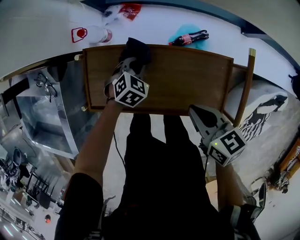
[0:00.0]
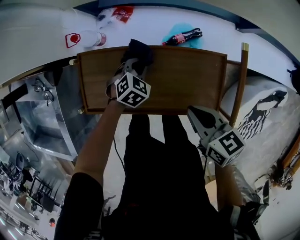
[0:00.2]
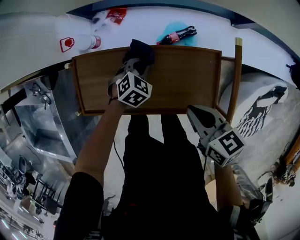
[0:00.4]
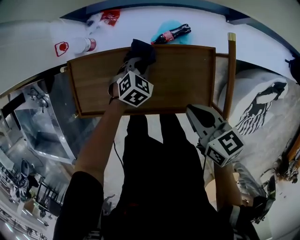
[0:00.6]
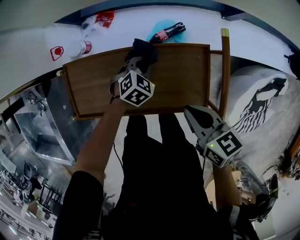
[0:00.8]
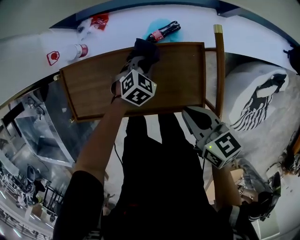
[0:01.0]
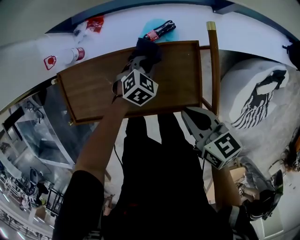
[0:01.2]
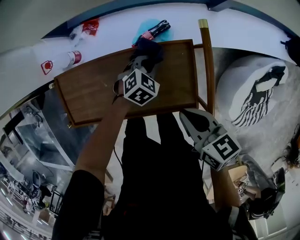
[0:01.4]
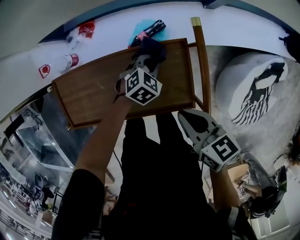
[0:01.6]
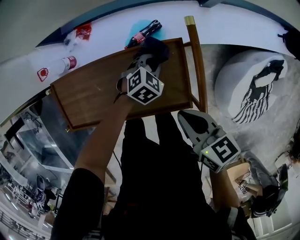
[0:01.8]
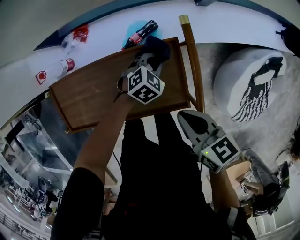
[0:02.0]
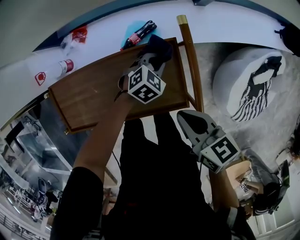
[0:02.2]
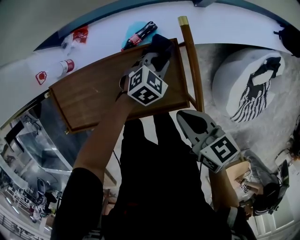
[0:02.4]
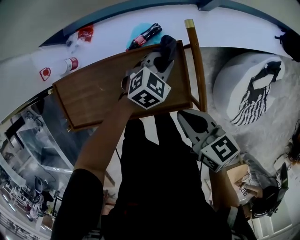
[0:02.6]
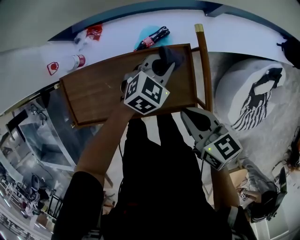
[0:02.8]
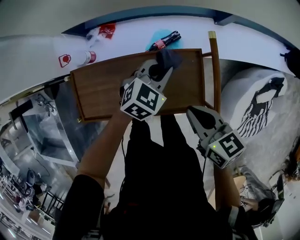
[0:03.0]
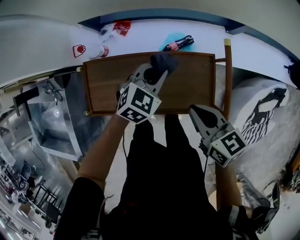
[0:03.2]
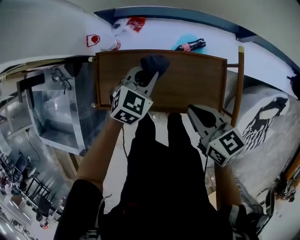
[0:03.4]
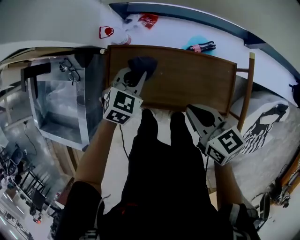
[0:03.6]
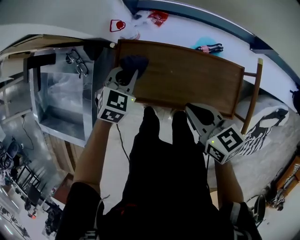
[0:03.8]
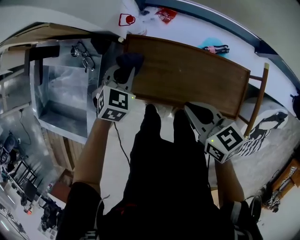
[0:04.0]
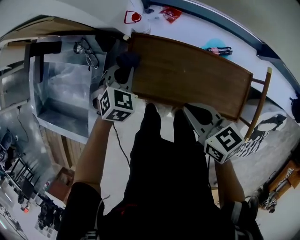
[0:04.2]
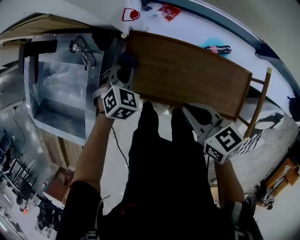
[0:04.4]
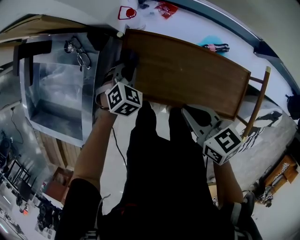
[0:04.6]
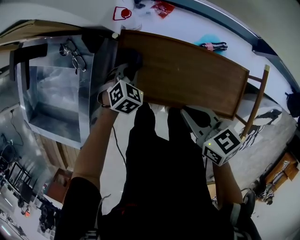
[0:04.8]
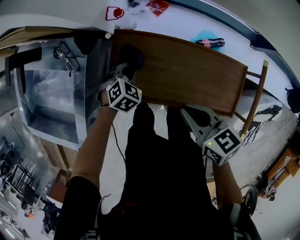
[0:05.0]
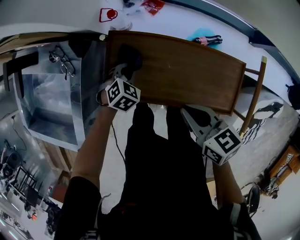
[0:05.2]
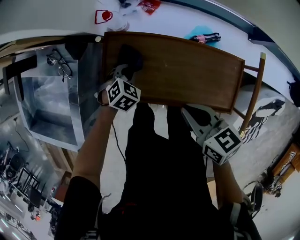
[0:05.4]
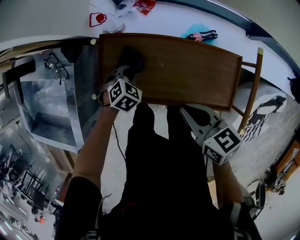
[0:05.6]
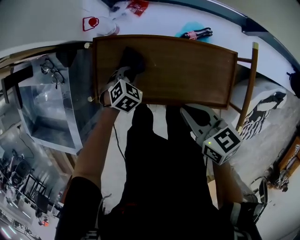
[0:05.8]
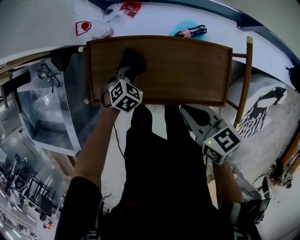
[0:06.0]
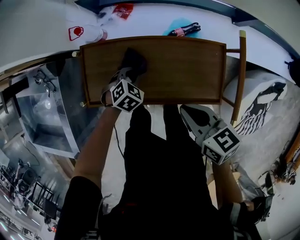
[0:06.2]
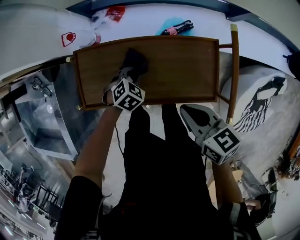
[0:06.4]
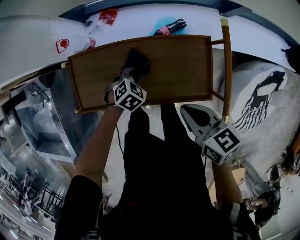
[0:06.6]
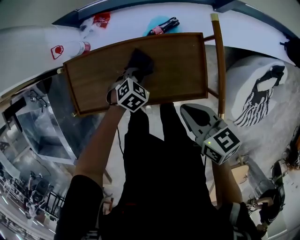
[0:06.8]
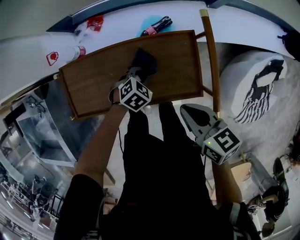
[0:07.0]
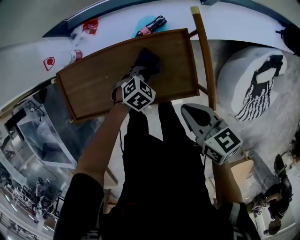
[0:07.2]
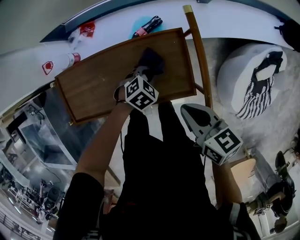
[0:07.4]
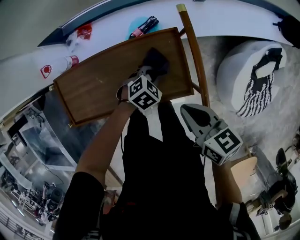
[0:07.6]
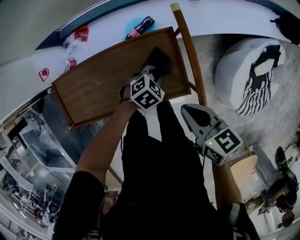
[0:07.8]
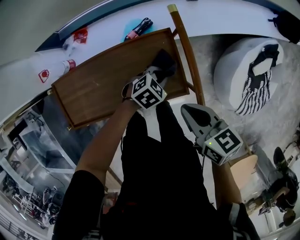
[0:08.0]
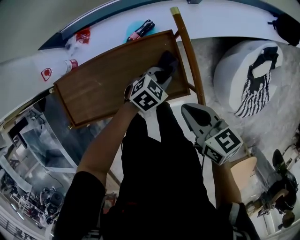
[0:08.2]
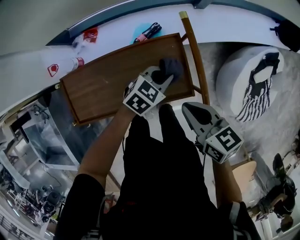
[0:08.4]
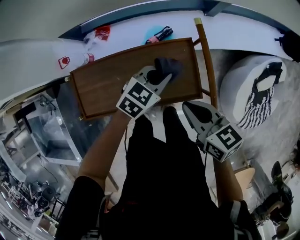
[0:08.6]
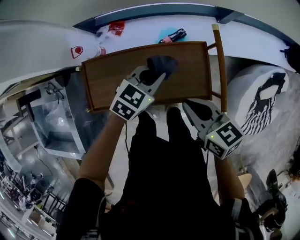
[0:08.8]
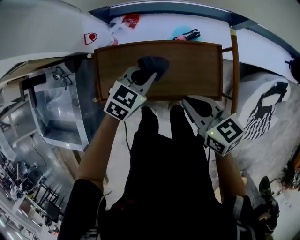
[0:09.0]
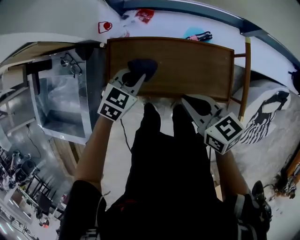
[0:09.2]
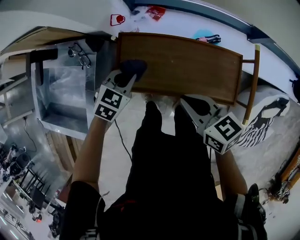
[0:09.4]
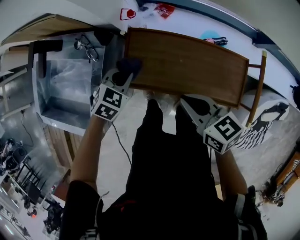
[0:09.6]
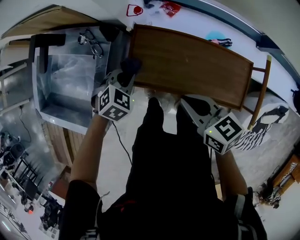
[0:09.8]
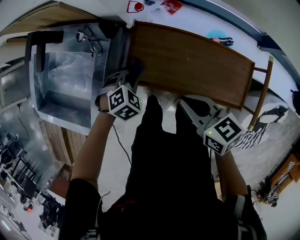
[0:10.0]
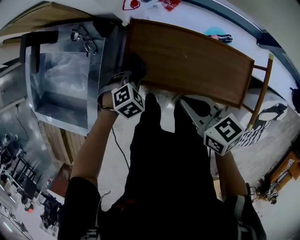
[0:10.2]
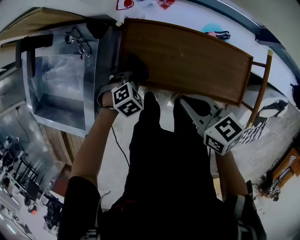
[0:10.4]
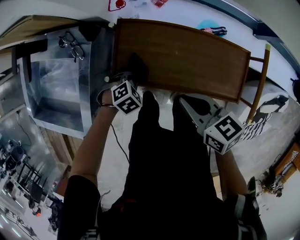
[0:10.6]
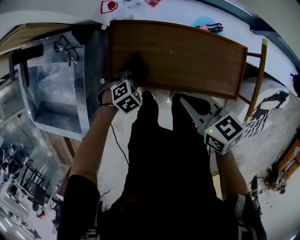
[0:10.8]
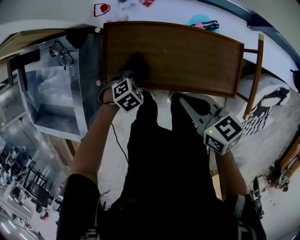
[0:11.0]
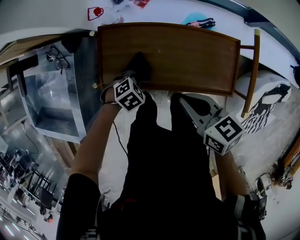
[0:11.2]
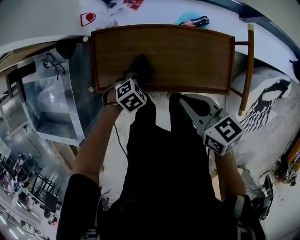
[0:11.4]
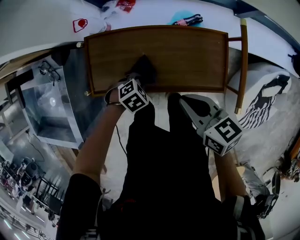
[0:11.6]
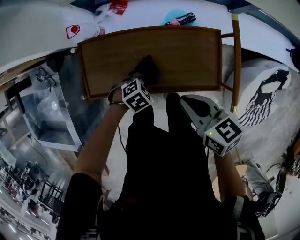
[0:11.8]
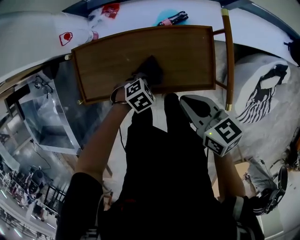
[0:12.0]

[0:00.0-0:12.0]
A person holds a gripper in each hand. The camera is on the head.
0:00.0 to 0:01.6: The right gripper travels to the right by roughly 15 cm, while the left gripper heads to the right, covering some 25 cm.
0:01.6 to 0:03.0: The left gripper goes approximately 15 cm upward, while the right gripper moves about 5 cm.
0:03.0 to 0:04.4: The right gripper ends up roughly 30 cm from where it was, and rotates about 20 degrees. The left gripper changes place by roughly 40 cm, and turns by some 40 degrees.
0:04.4 to 0:06.0: The right gripper is displaced to the right and backward by about 15 cm. Meanwhile the left gripper heads to the right, downward and backward, covering about 20 cm.
0:06.0 to 0:07.6: The left gripper shifts by approximately 30 cm, and changes its angle by some 20 degrees, while the right gripper moves some 20 cm.
0:07.6 to 0:09.0: The right gripper changes place by roughly 20 cm. The left gripper shifts by roughly 30 cm, and rotates some 30 degrees.
0:09.0 to 0:10.4: The right gripper travels to the left by roughly 15 cm. Meanwhile the left gripper travels to the left and downward by about 30 cm, and tilts its fingers approximately 30 degrees downward.
0:10.4 to 0:12.0: The right gripper moves roughly 20 cm, while the left gripper moves some 25 cm.

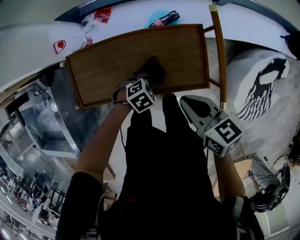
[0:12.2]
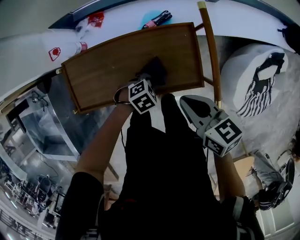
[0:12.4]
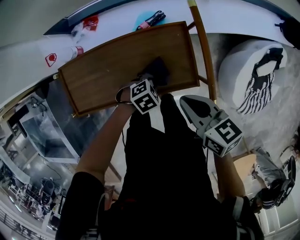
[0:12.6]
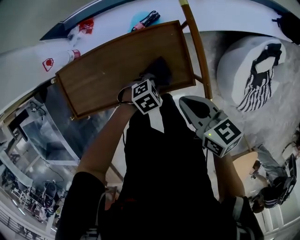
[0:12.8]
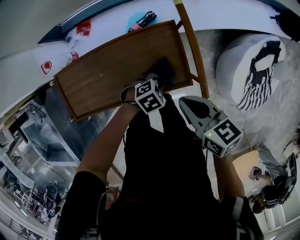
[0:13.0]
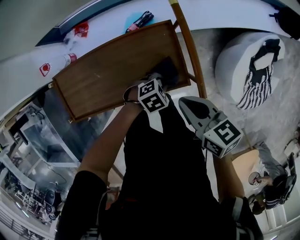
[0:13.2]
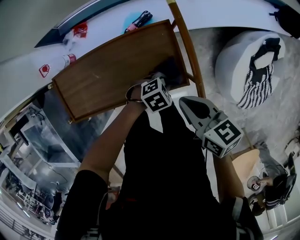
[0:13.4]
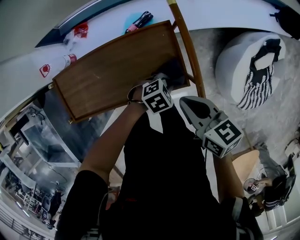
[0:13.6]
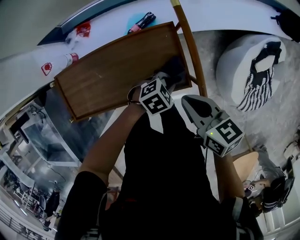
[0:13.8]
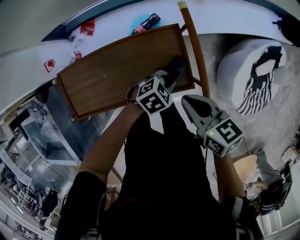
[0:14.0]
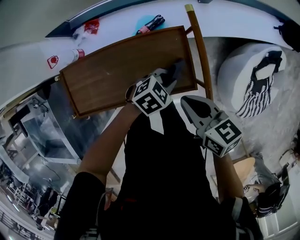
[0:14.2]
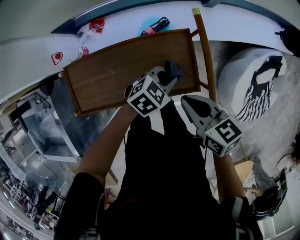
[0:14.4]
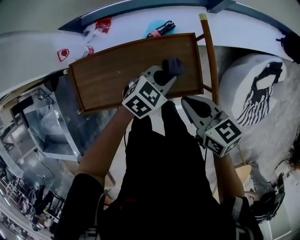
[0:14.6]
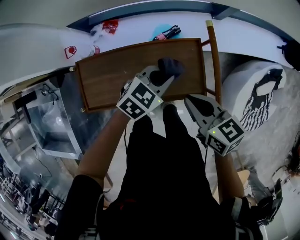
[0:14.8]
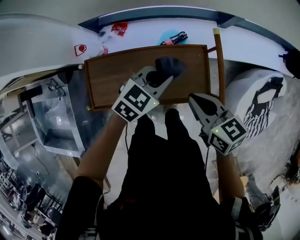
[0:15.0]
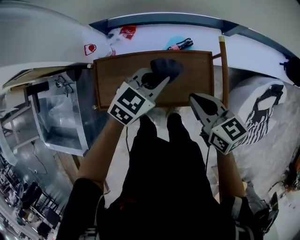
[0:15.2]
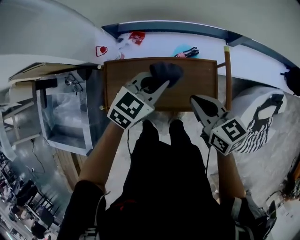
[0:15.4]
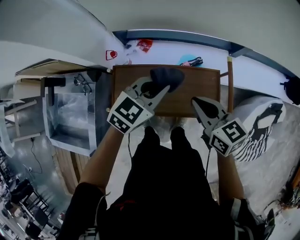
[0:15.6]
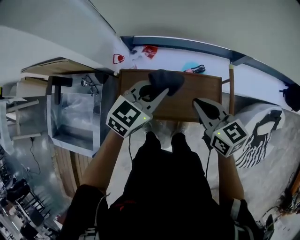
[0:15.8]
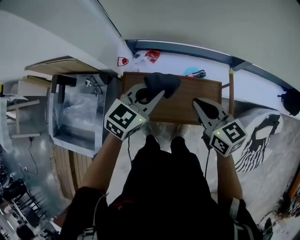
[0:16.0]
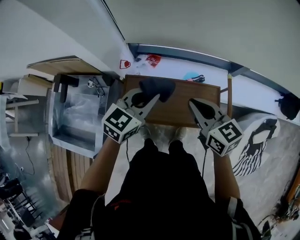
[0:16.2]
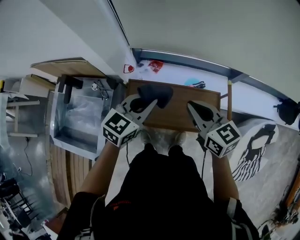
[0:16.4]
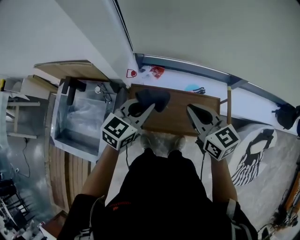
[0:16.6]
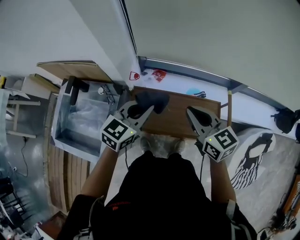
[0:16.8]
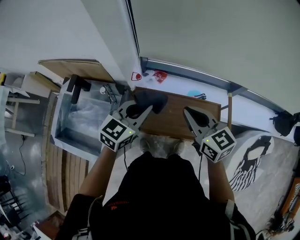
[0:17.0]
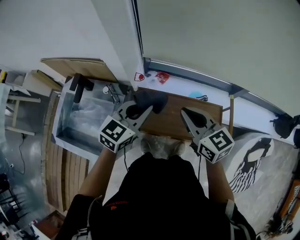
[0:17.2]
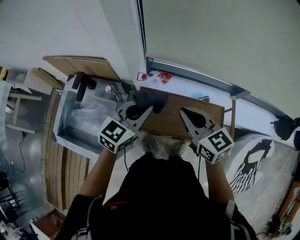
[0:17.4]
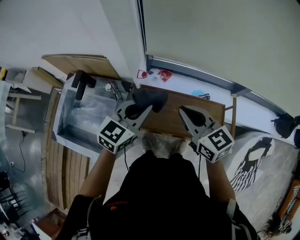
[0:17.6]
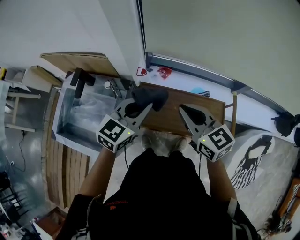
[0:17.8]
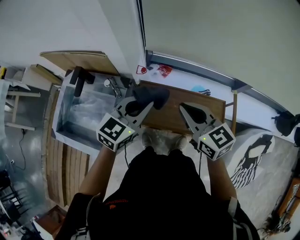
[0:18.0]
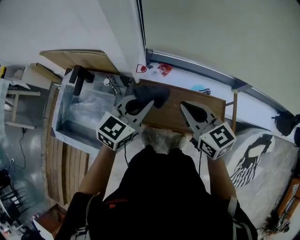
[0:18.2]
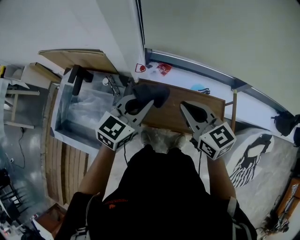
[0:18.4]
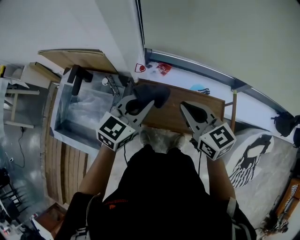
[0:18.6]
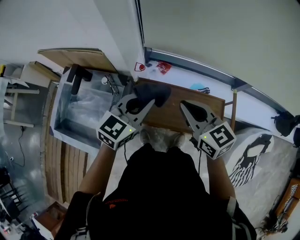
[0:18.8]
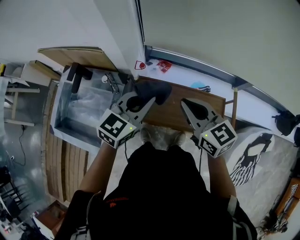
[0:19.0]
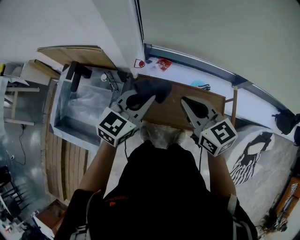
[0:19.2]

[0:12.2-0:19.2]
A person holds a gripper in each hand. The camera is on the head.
0:12.2 to 0:13.6: The left gripper ends up some 20 cm from where it was. Meanwhile the right gripper moves about 10 cm.
0:13.6 to 0:15.0: The left gripper heads upward, covering roughly 20 cm, and turns by roughly 40 degrees. The right gripper moves some 15 cm.
0:15.0 to 0:16.4: Both grippers move to the left and upward, about 25 cm. The left gripper changes its angle by some 30 degrees. The right gripper changes its angle by approximately 20 degrees.
0:16.4 to 0:17.8: The grippers both shift to the left by approximately 10 cm.
0:17.8 to 0:19.2: The grippers move only a little.

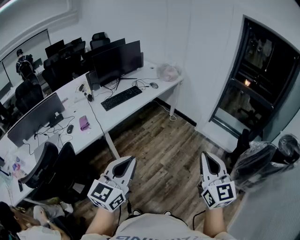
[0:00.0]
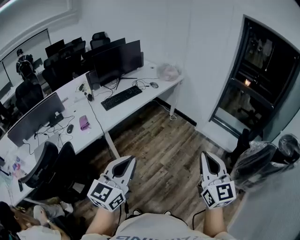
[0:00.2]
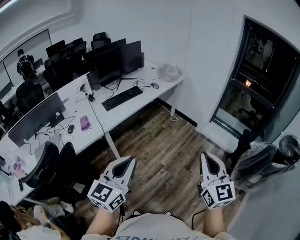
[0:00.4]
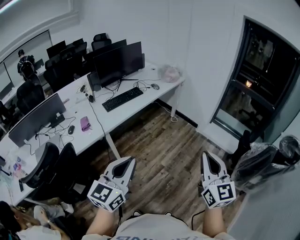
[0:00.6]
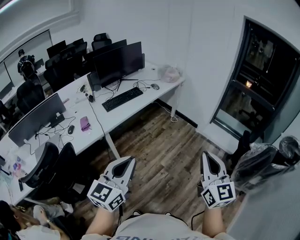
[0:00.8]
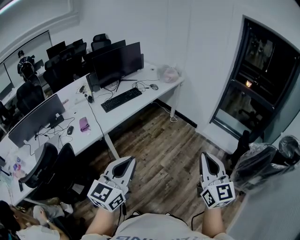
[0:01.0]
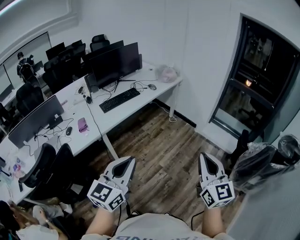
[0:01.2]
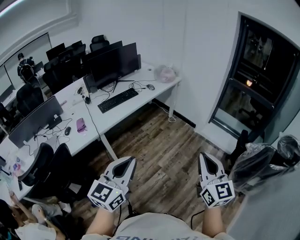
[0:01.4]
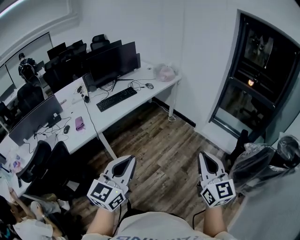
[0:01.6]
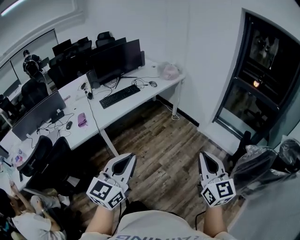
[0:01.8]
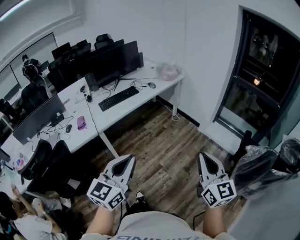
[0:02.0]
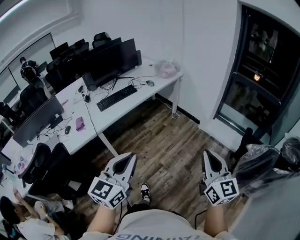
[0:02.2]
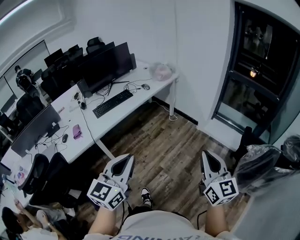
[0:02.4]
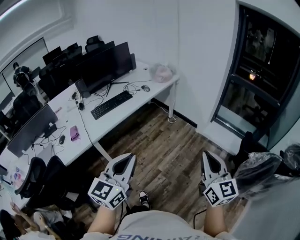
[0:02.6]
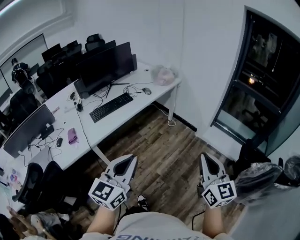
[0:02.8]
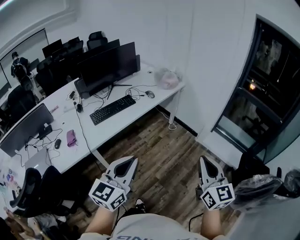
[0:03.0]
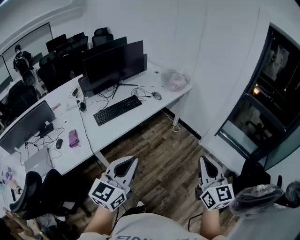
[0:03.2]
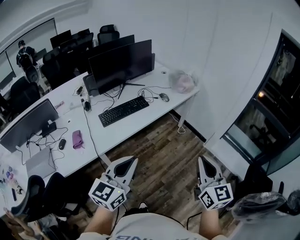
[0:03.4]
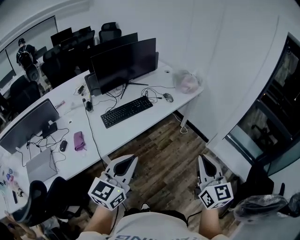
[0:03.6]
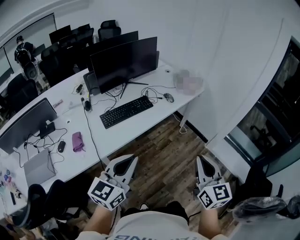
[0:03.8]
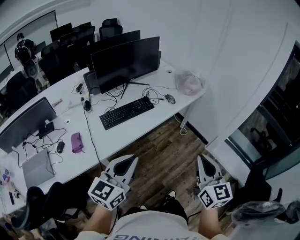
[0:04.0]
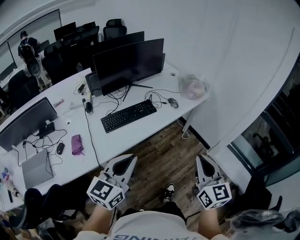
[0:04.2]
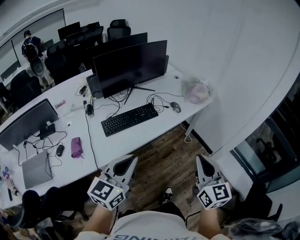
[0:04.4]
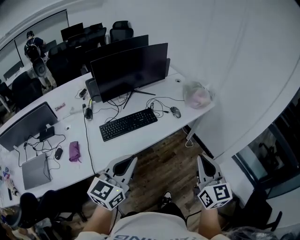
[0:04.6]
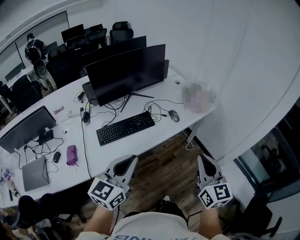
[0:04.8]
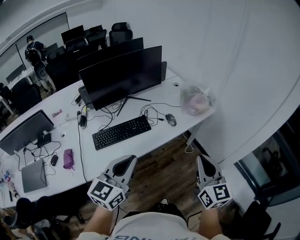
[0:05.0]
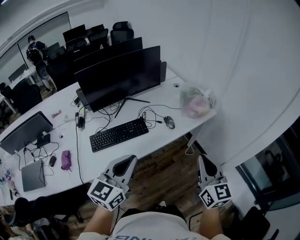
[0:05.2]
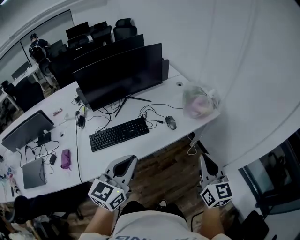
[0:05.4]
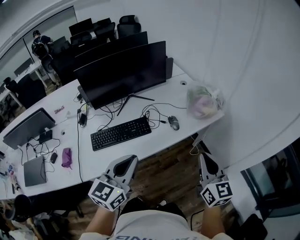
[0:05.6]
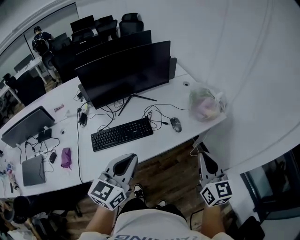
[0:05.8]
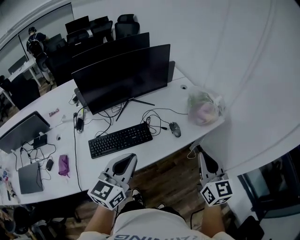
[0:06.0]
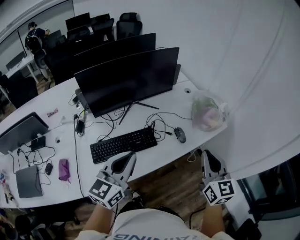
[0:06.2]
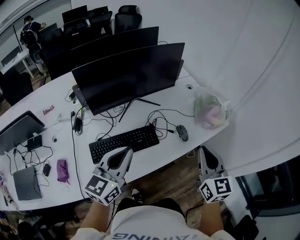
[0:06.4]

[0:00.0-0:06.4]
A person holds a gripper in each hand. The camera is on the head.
0:00.0 to 0:01.6: The two grippers go about 10 cm to the right.
0:01.6 to 0:03.2: Both grippers move forward, approximately 20 cm.
0:03.2 to 0:04.8: Both grippers move forward, about 25 cm.
0:04.8 to 0:06.4: Both grippers travel together forward, some 25 cm.
